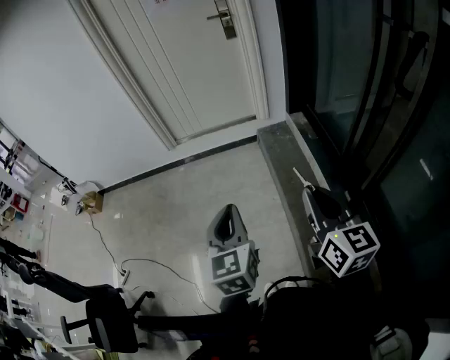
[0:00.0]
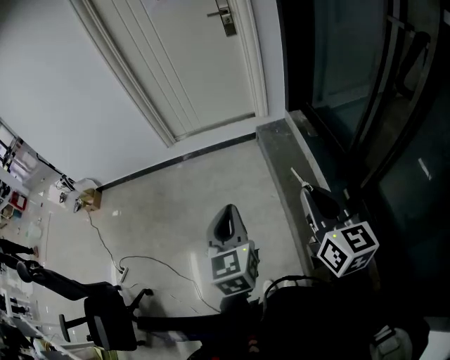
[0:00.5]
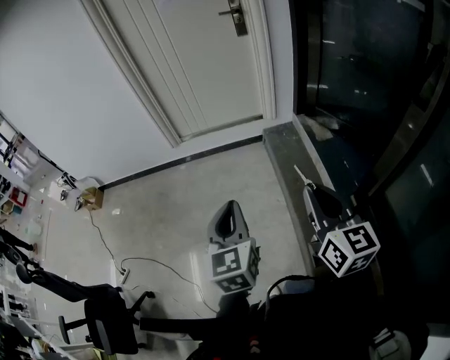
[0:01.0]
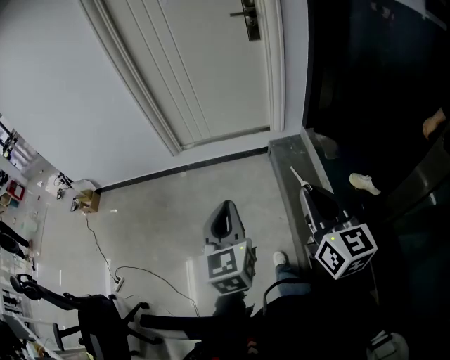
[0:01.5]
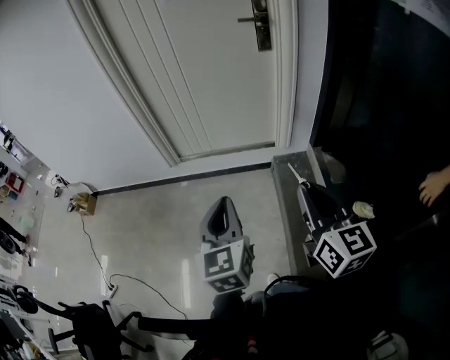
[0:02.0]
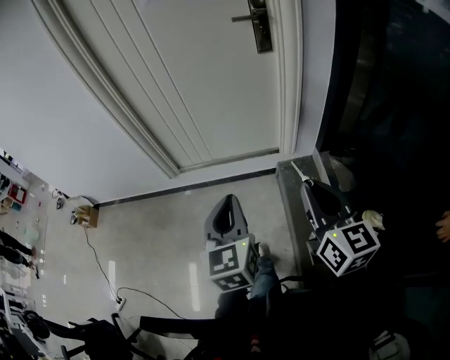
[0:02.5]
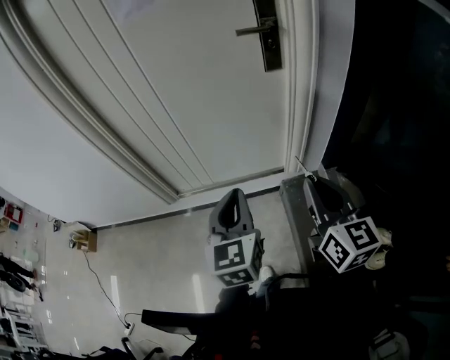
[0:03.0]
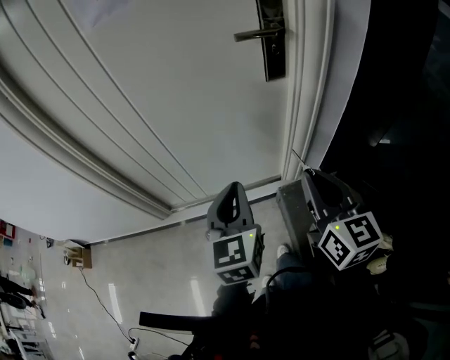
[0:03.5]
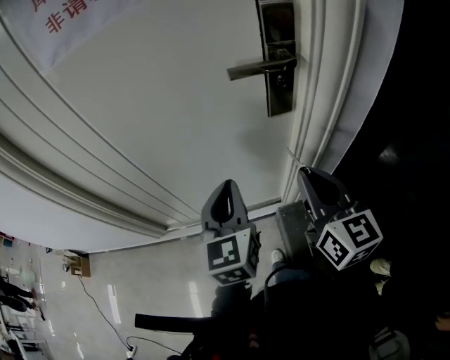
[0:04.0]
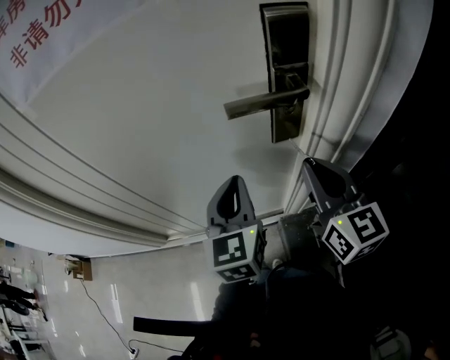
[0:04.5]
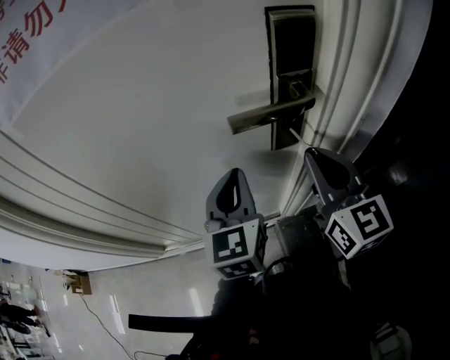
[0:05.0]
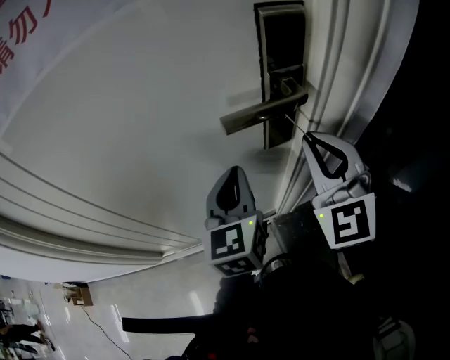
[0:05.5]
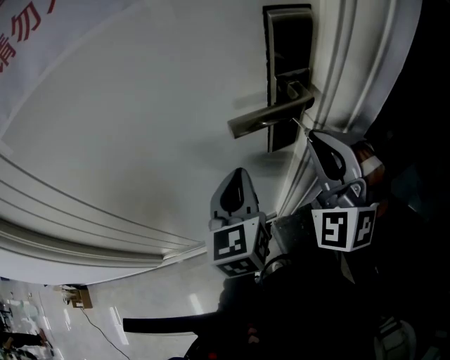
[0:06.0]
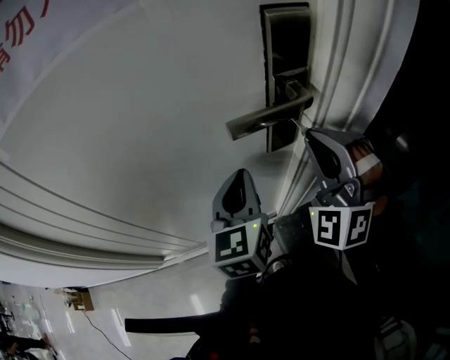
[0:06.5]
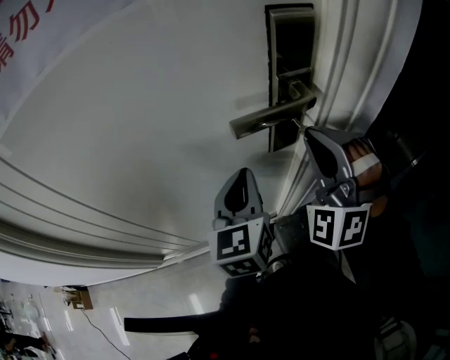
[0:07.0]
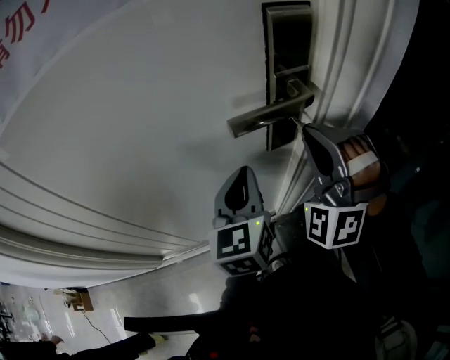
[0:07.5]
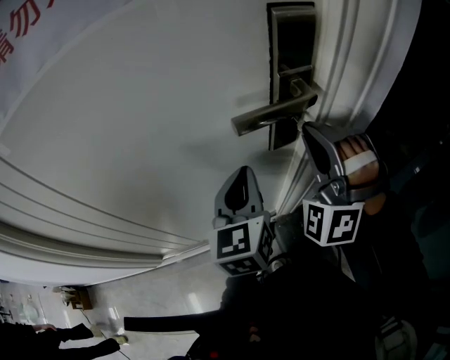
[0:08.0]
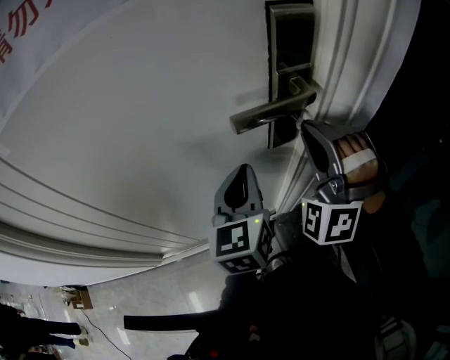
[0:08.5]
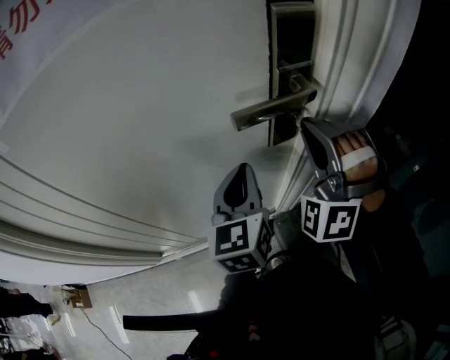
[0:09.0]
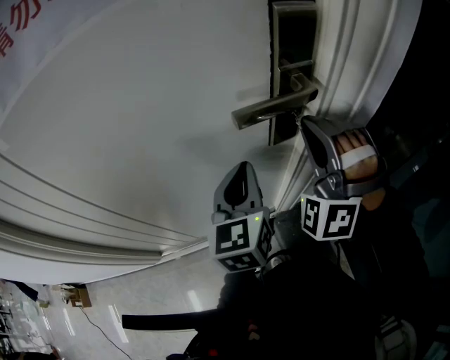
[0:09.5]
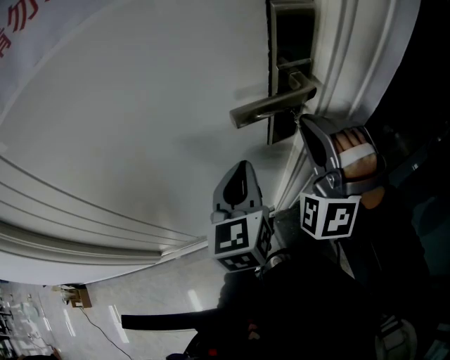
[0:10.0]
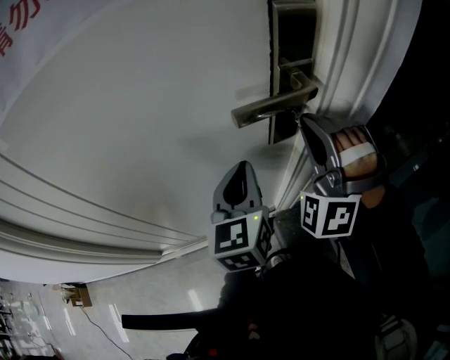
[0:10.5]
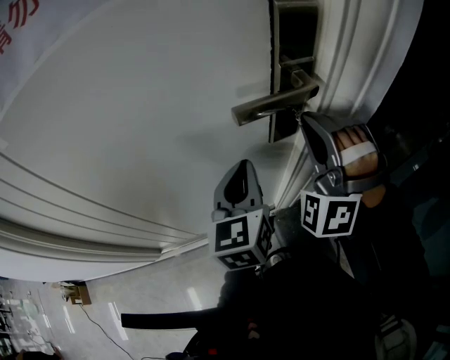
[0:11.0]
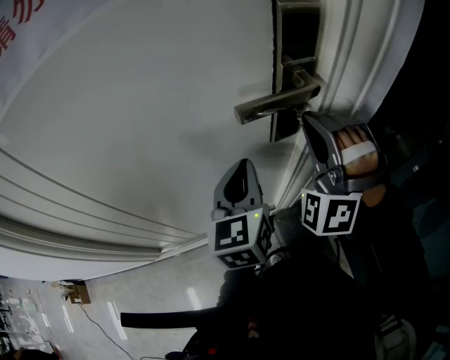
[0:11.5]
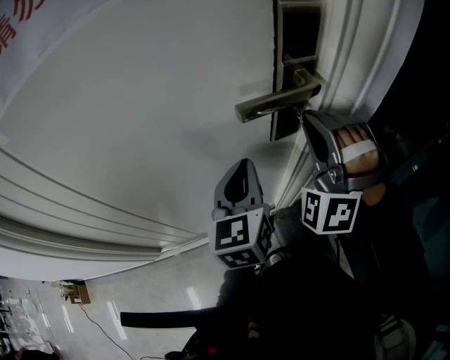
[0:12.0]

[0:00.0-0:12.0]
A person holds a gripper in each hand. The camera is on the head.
0:00.0 to 0:02.0: The grippers both shift forward by some 40 cm.
0:02.0 to 0:04.0: The pair of grippers is taken forward, roughly 60 cm.
0:04.0 to 0:06.0: The grippers both shift forward by approximately 15 cm. The right gripper twists roughly 80 degrees counterclockwise, seen from behind.
0:06.0 to 0:08.0: The grippers move only a little.
0:08.0 to 0:12.0: Both grippers stay about where they are.

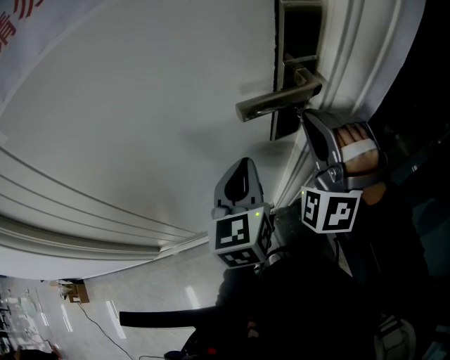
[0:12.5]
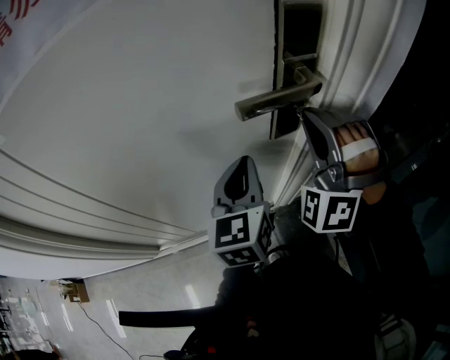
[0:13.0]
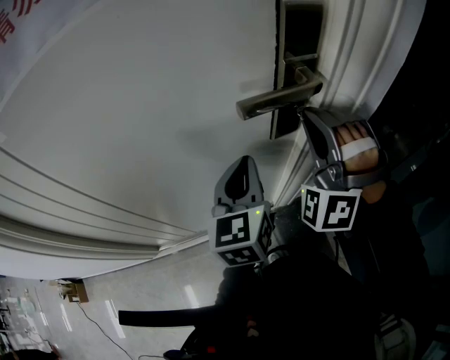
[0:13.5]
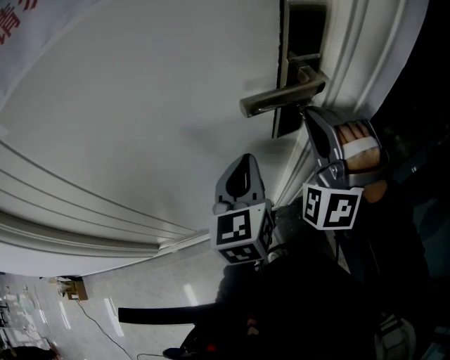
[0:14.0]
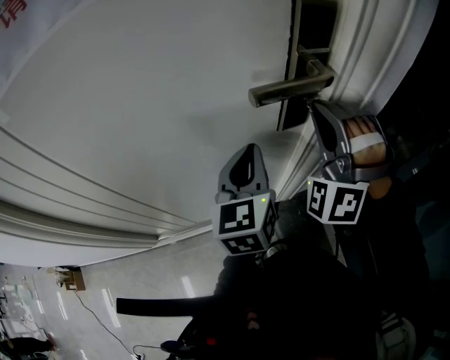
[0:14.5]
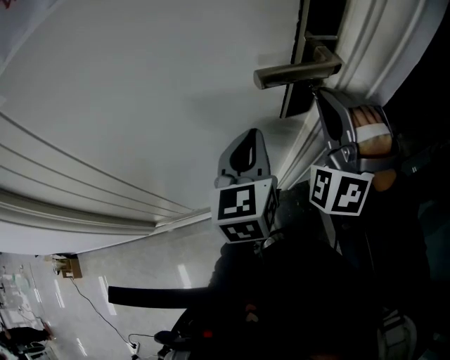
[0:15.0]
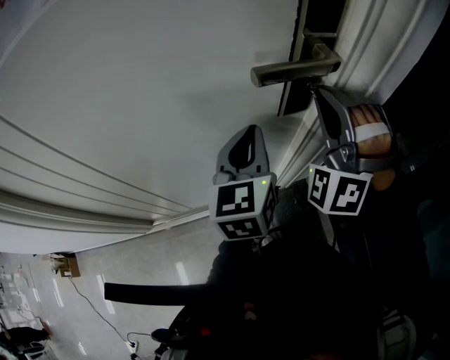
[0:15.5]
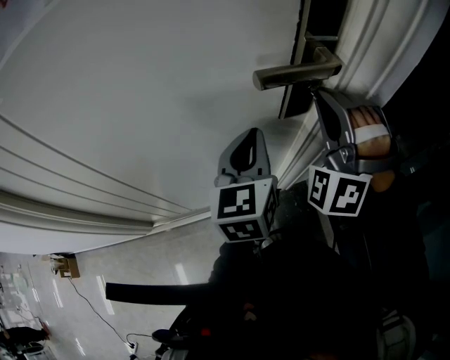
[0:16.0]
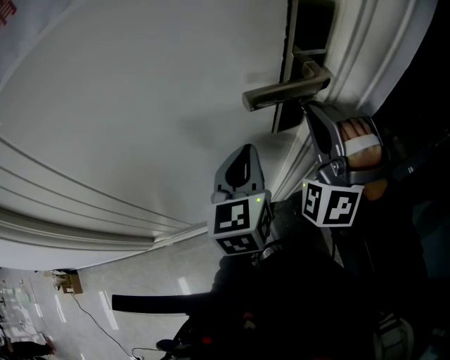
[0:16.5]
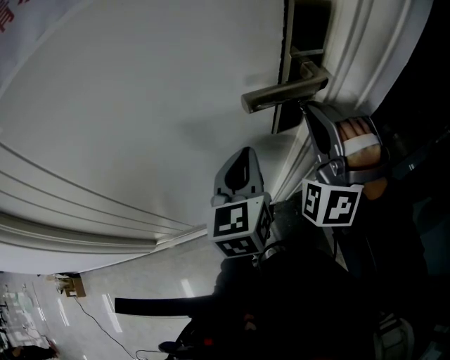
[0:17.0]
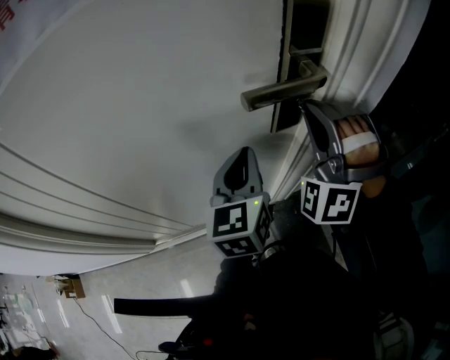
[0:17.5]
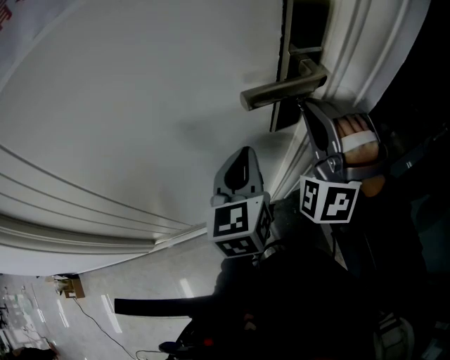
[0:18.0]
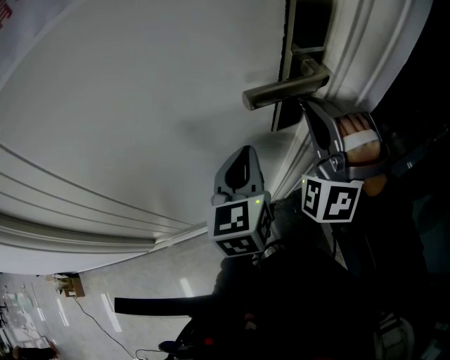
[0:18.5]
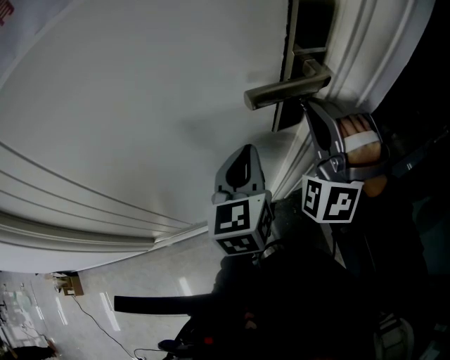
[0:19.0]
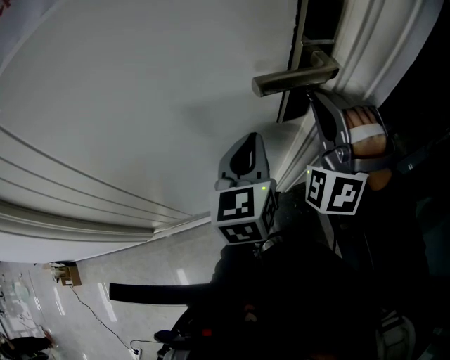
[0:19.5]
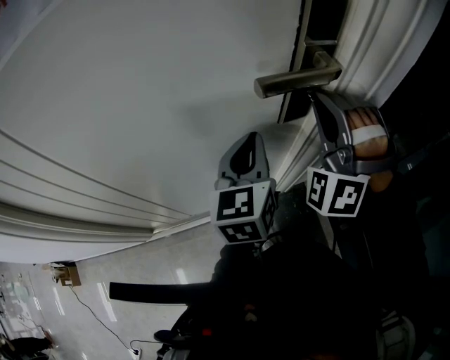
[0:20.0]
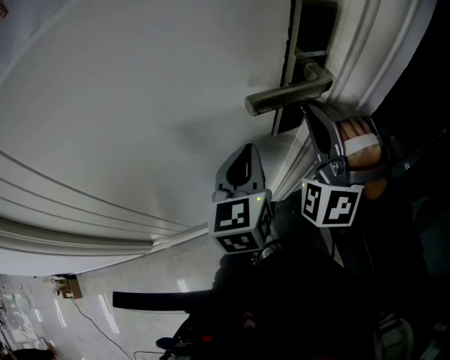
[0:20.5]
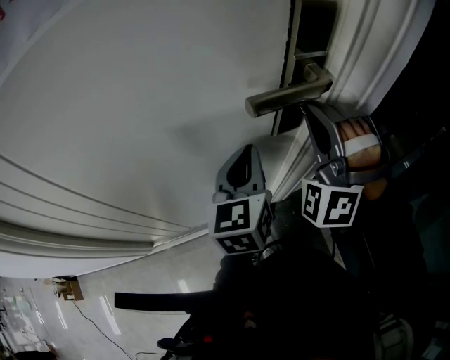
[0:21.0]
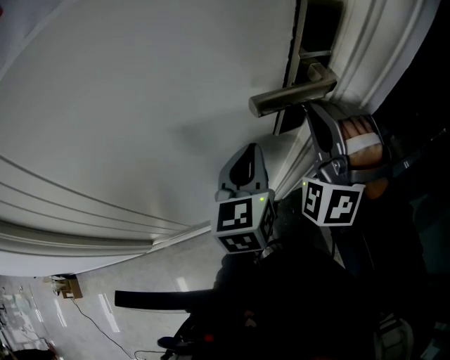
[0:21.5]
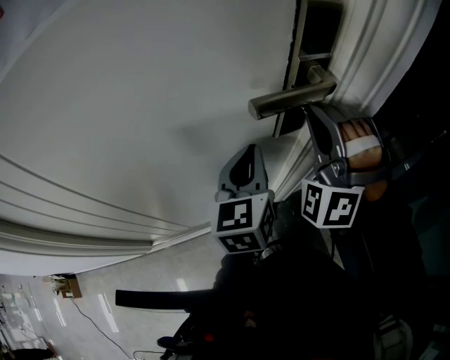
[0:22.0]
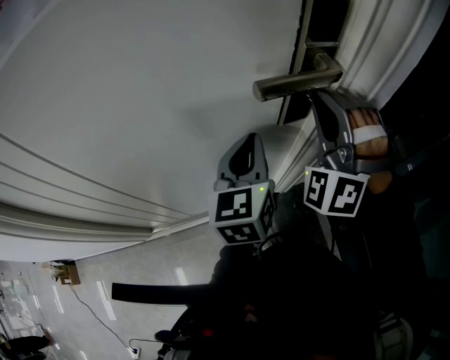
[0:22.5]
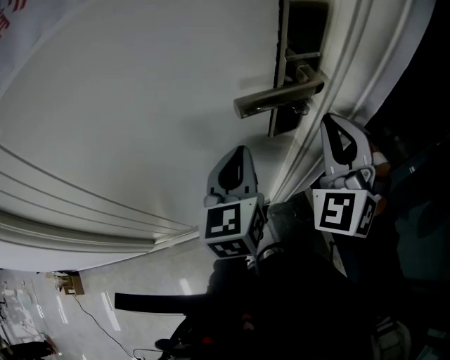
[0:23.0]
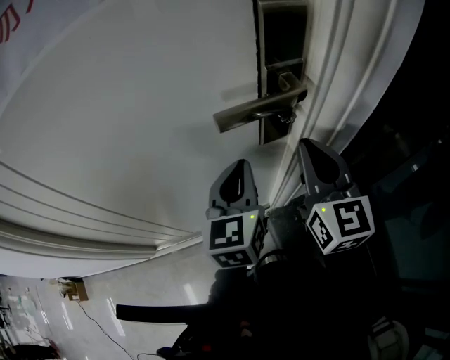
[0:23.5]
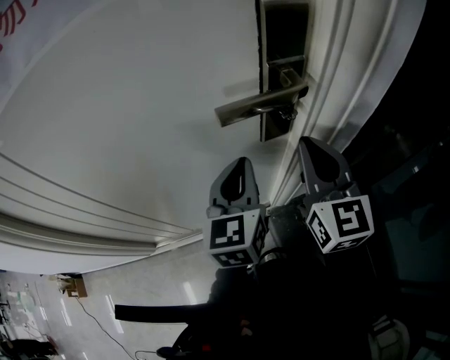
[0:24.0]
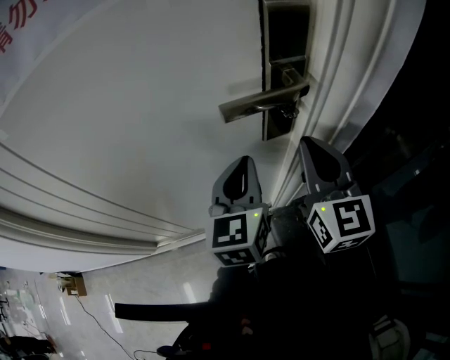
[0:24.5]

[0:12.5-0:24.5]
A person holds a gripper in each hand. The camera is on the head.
0:12.5 to 0:18.5: Neither gripper changes place.
0:18.5 to 0:20.5: Neither gripper changes place.
0:20.5 to 0:22.5: Neither gripper changes place.
0:22.5 to 0:24.5: The right gripper ends up roughly 5 cm from where it was, and twists some 80 degrees clockwise, seen from behind.

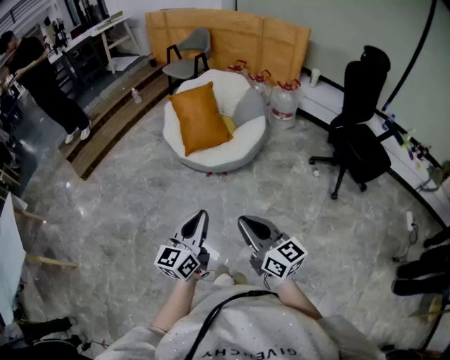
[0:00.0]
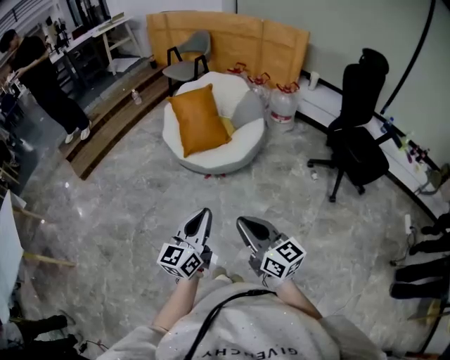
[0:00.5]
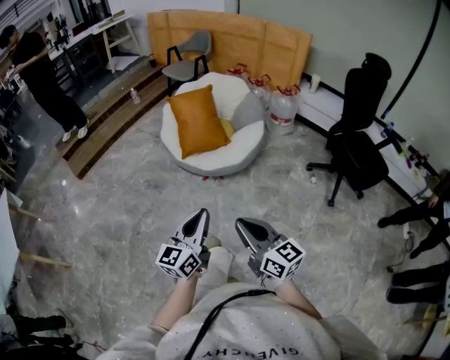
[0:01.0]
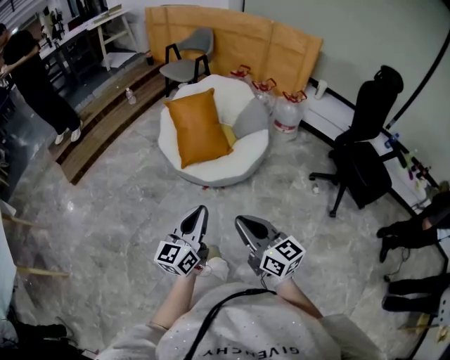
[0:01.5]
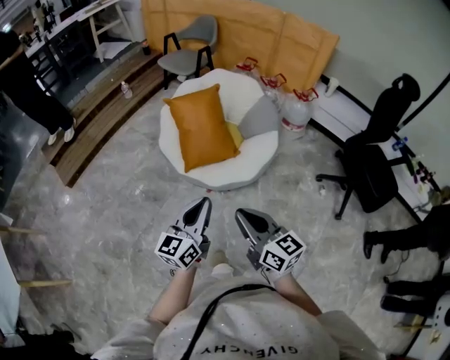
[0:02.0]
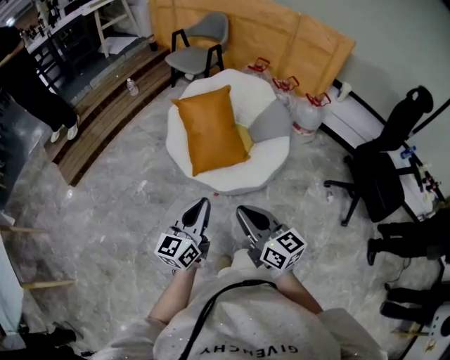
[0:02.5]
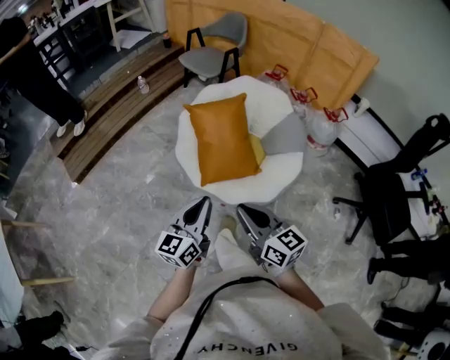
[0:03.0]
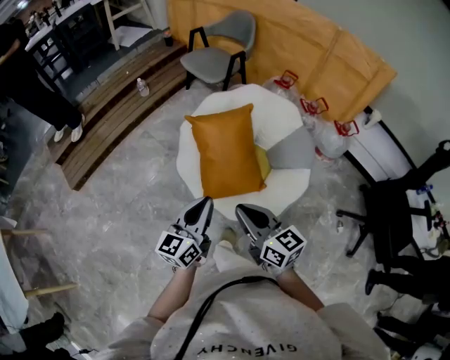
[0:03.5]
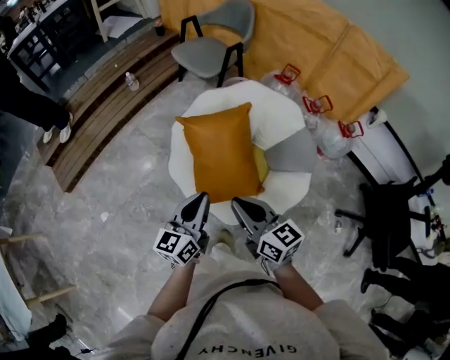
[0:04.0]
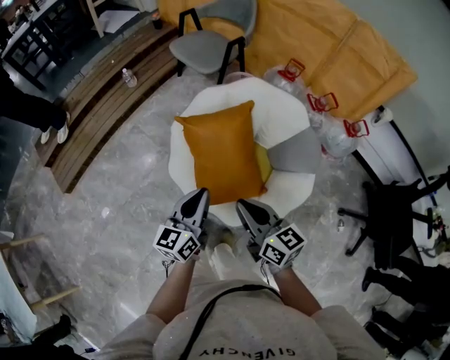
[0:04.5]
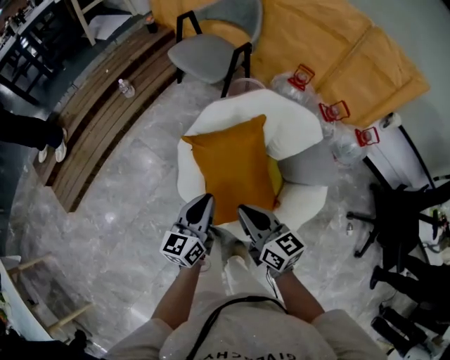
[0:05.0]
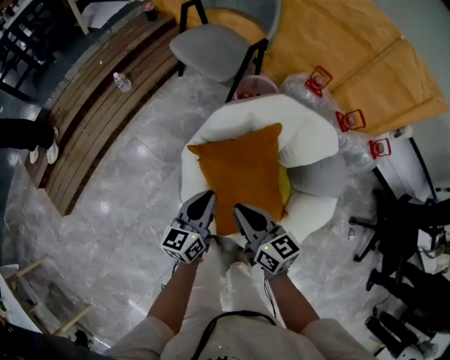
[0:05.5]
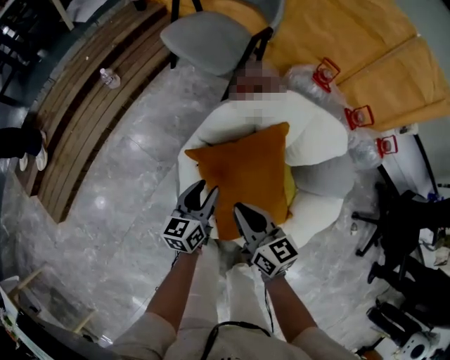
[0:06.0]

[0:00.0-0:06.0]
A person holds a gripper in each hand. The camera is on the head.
0:00.0 to 0:02.0: Both grippers move forward, roughly 30 cm.
0:02.0 to 0:04.0: The grippers both shift forward by about 40 cm.
0:04.0 to 0:06.0: Both grippers move forward and downward, some 35 cm. The left gripper opens.
